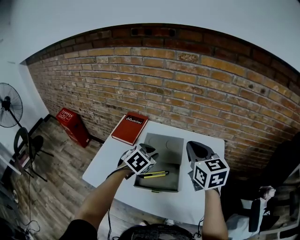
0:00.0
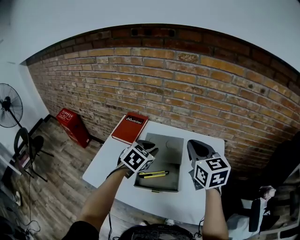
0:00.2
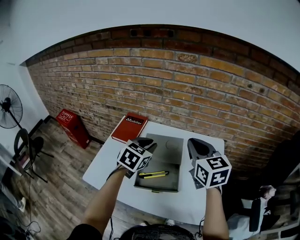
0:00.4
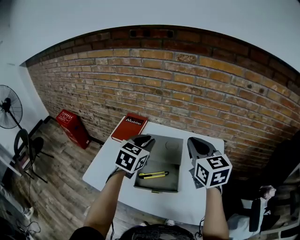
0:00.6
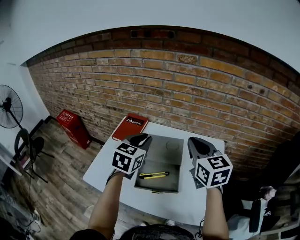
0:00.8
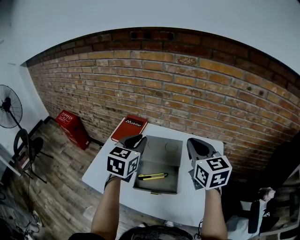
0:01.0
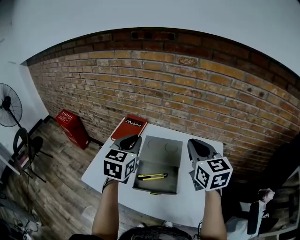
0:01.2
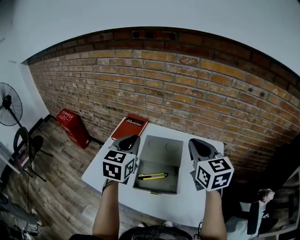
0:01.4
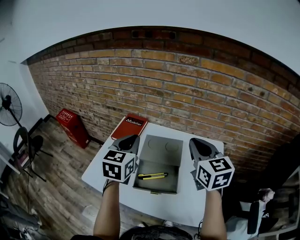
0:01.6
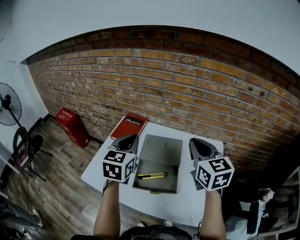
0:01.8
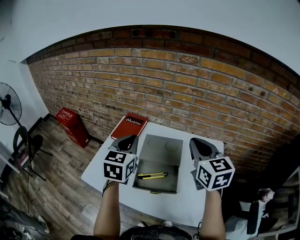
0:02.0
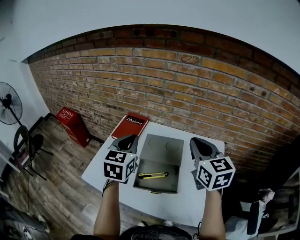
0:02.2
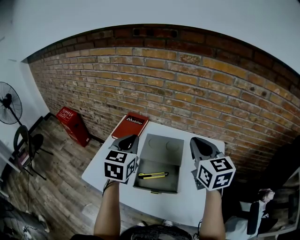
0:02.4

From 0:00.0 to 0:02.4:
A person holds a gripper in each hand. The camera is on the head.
From 0:00.0 to 0:01.2: The left gripper travels upward and to the left by roughly 15 cm, and swivels roughly 40 degrees.
From 0:01.2 to 0:02.4: The grippers stay close to where they were, moving slightly.

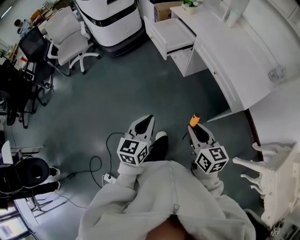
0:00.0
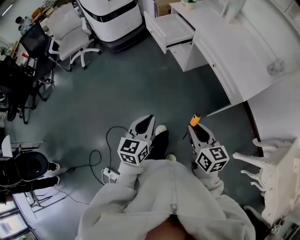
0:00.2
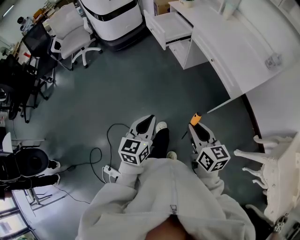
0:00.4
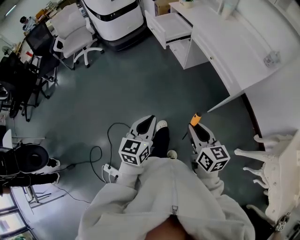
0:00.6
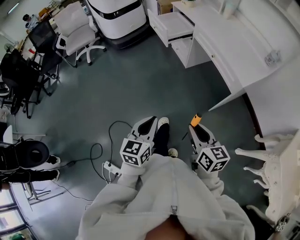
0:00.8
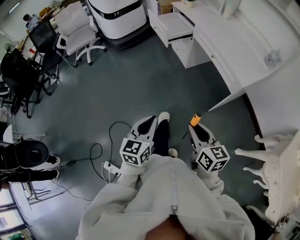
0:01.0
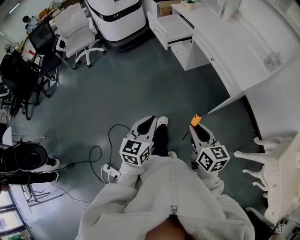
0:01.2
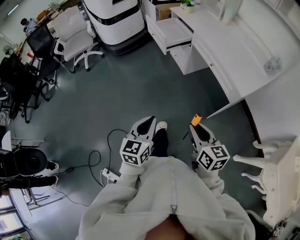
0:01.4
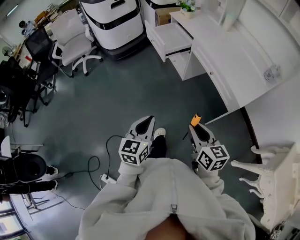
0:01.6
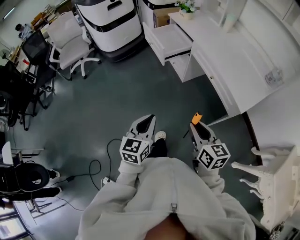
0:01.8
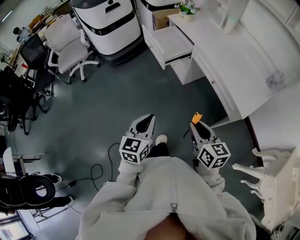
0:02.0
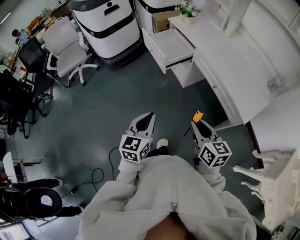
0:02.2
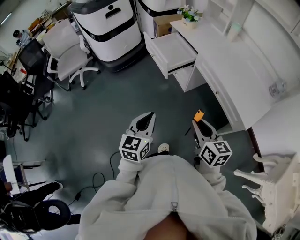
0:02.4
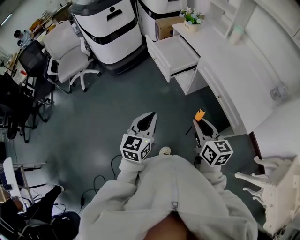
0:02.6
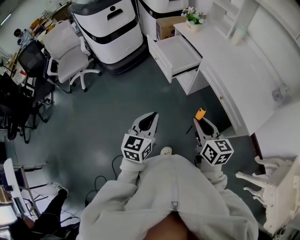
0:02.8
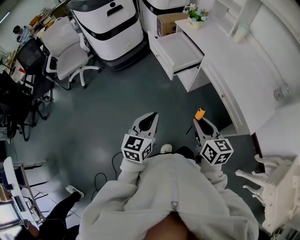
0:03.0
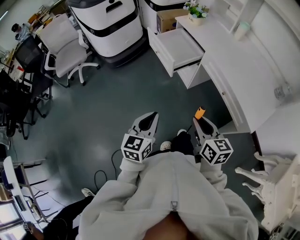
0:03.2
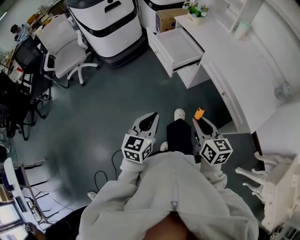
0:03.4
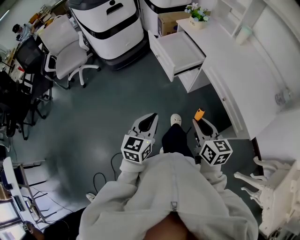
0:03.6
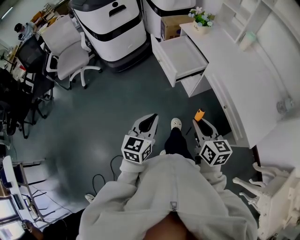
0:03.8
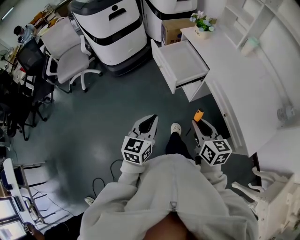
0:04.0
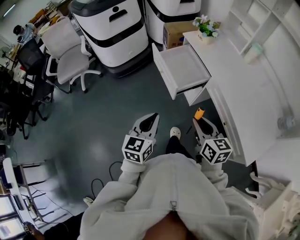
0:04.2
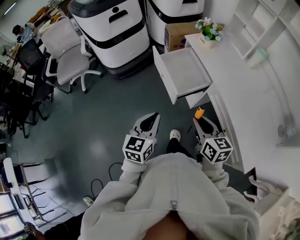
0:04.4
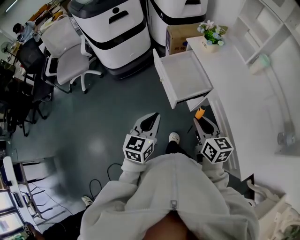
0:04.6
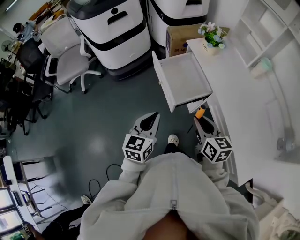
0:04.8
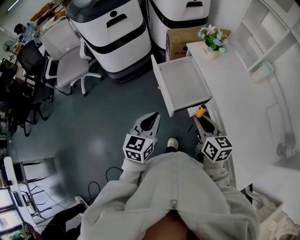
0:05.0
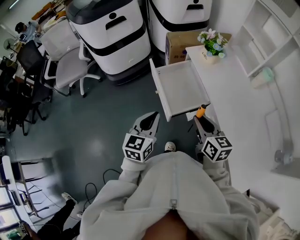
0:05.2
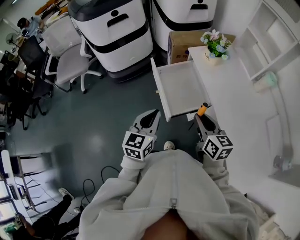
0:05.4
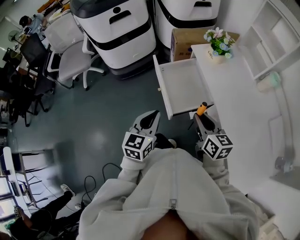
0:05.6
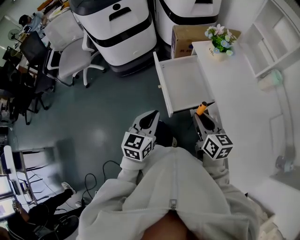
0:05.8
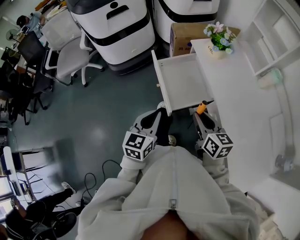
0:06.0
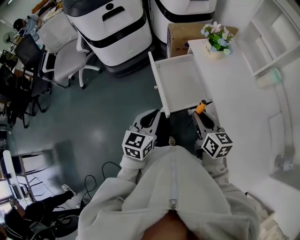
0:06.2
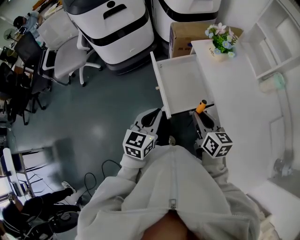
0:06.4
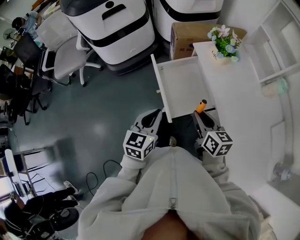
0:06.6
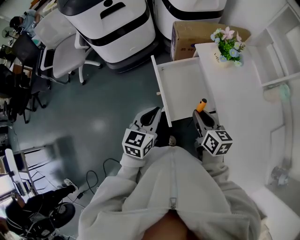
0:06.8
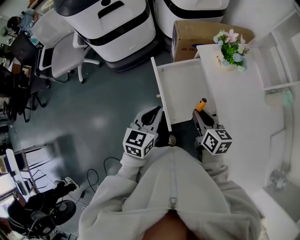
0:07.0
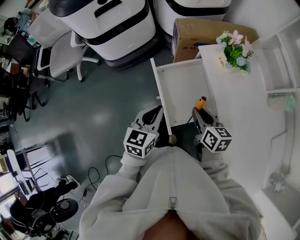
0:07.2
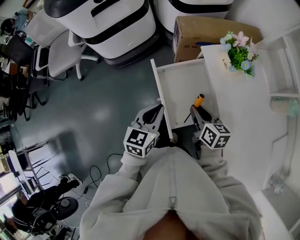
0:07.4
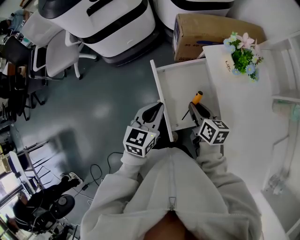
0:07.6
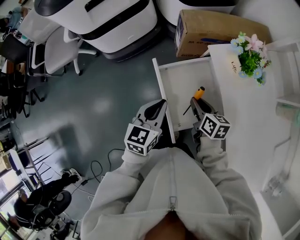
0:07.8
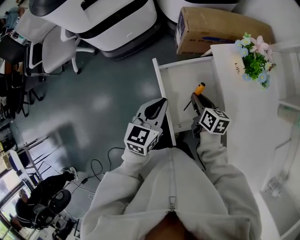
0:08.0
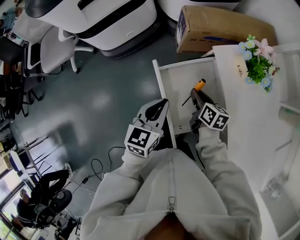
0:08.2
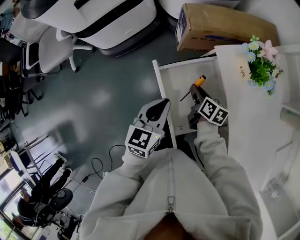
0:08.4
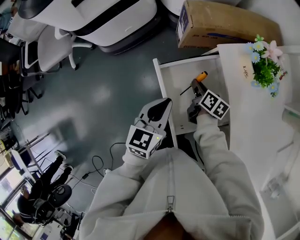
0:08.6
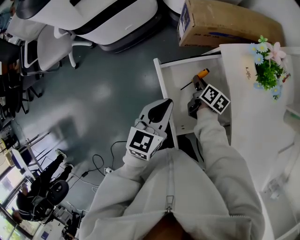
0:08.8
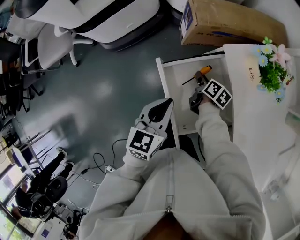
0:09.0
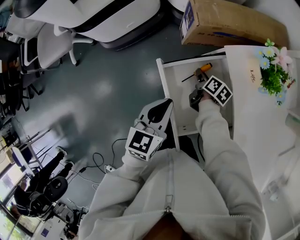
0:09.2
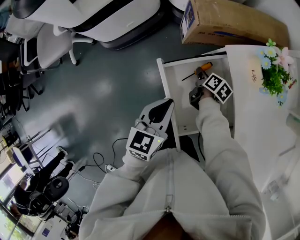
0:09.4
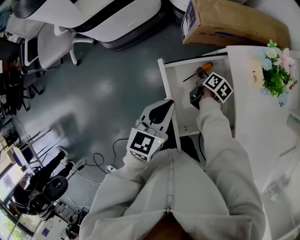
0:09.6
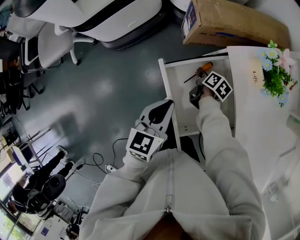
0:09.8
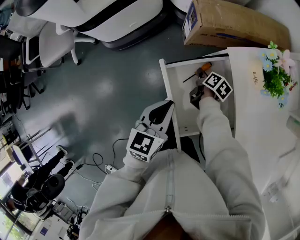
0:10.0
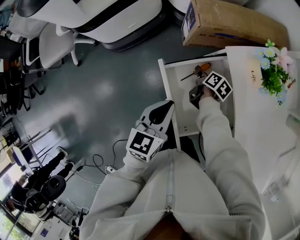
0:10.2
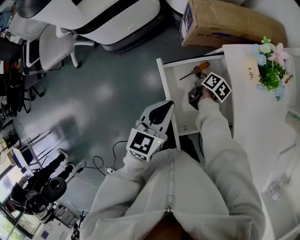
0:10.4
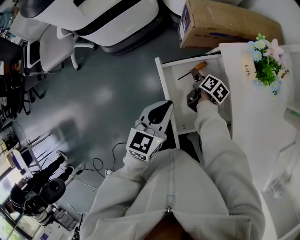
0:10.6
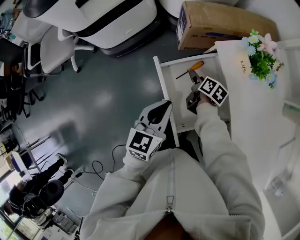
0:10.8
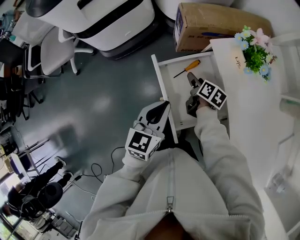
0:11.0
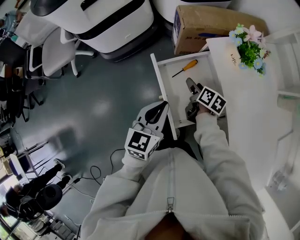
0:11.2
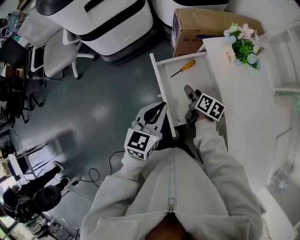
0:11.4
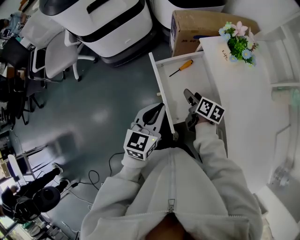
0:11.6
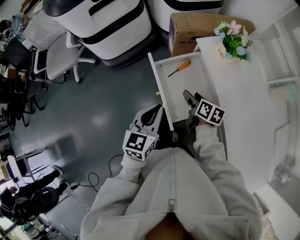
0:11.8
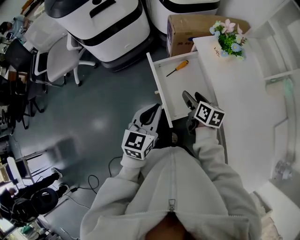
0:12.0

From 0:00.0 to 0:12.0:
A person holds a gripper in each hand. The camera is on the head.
From 0:00.0 to 0:01.6: The right gripper travels backward and back again, about 15 cm each way. The left gripper moves about 15 cm backward and comes back.
From 0:01.6 to 0:03.0: Both grippers move forward, about 20 cm.
From 0:03.0 to 0:04.4: Both grippers travel together forward, some 20 cm.
From 0:04.4 to 0:06.0: The left gripper is displaced forward and to the right by roughly 15 cm. The right gripper shifts approximately 15 cm forward.
From 0:06.0 to 0:07.6: The right gripper shifts some 20 cm forward and downward. The left gripper is displaced forward by some 20 cm.
From 0:07.6 to 0:09.0: The right gripper goes approximately 20 cm downward and forward, and swivels approximately 30 degrees. The left gripper shifts roughly 5 cm forward.
From 0:09.0 to 0:10.4: The right gripper opens up.
From 0:10.4 to 0:12.0: The right gripper goes roughly 25 cm upward and backward, and swivels about 30 degrees; the left gripper is displaced backward and upward by roughly 15 cm.

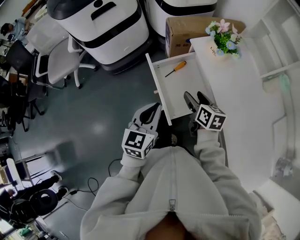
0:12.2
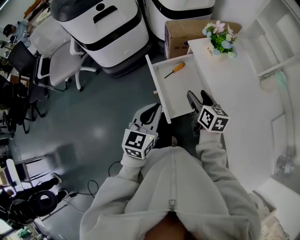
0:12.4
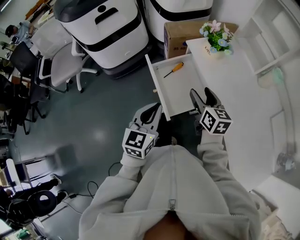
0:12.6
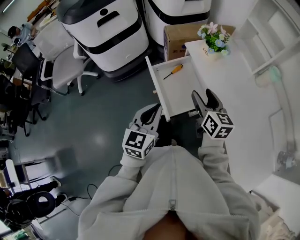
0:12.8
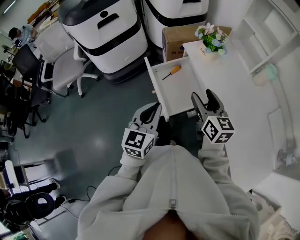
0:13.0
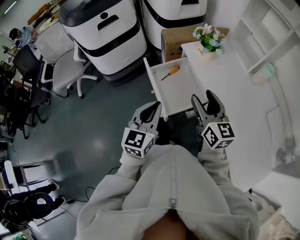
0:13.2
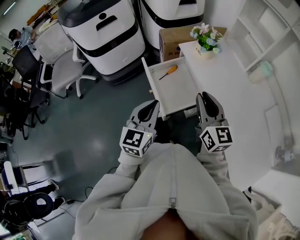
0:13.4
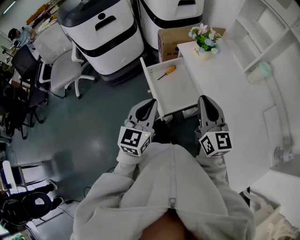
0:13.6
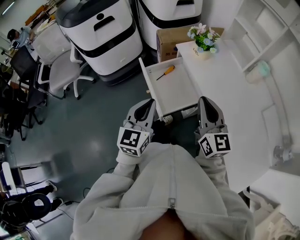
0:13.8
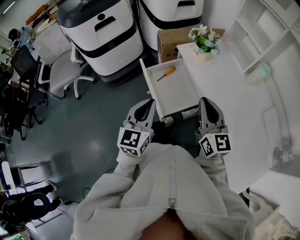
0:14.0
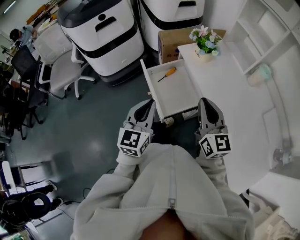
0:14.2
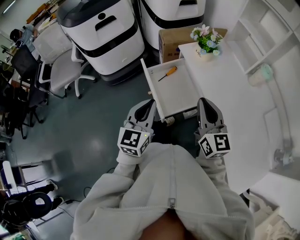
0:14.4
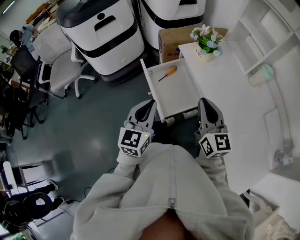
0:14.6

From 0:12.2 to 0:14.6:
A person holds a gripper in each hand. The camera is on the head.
From 0:12.2 to 0:13.4: The left gripper moves upward and backward, approximately 10 cm; the right gripper travels upward and backward by roughly 20 cm, rotates about 40 degrees, and closes.
From 0:13.4 to 0:14.6: There are only small adjustments of the grippers.

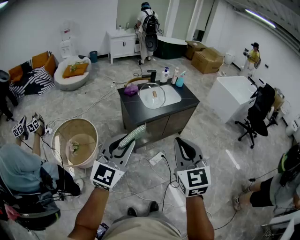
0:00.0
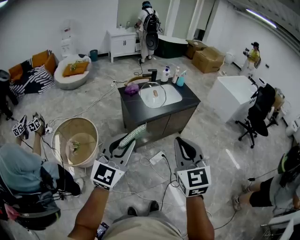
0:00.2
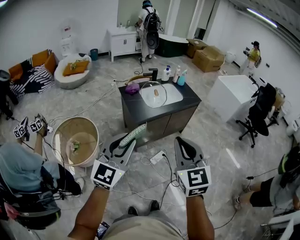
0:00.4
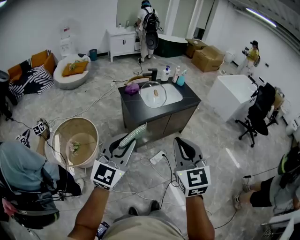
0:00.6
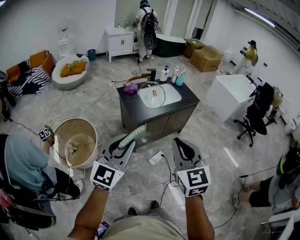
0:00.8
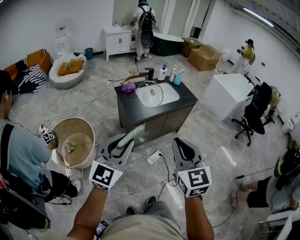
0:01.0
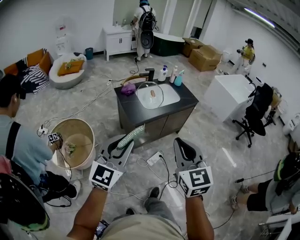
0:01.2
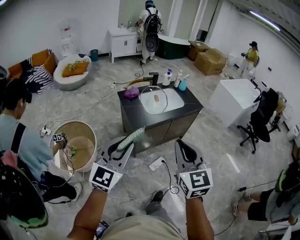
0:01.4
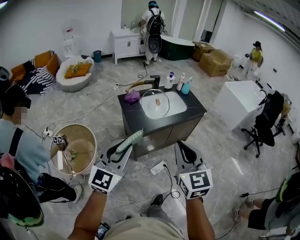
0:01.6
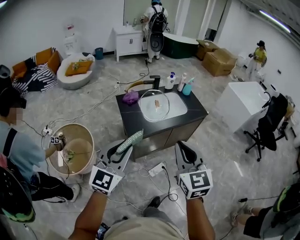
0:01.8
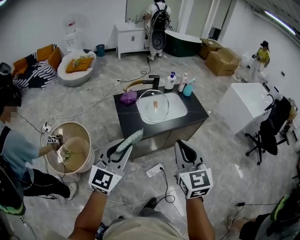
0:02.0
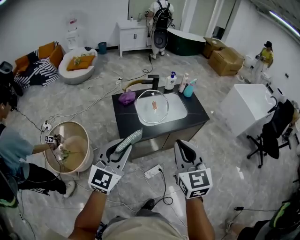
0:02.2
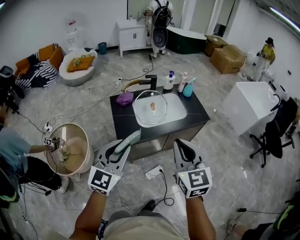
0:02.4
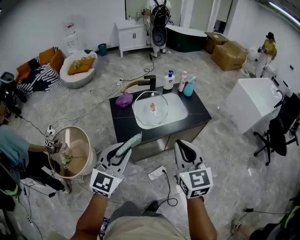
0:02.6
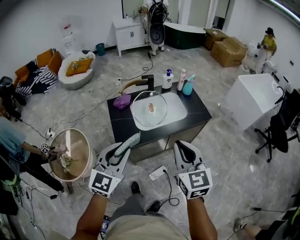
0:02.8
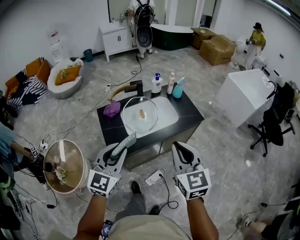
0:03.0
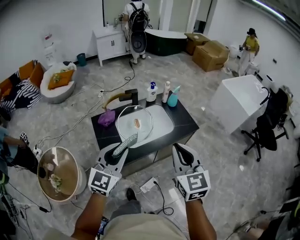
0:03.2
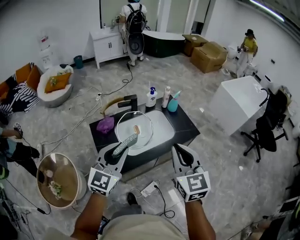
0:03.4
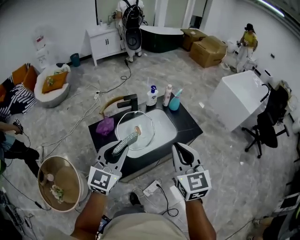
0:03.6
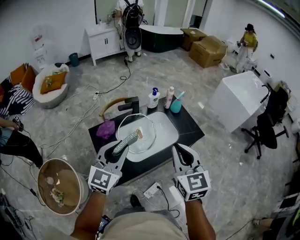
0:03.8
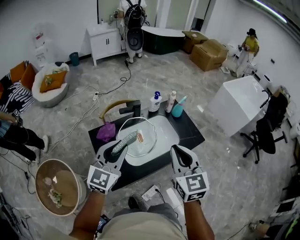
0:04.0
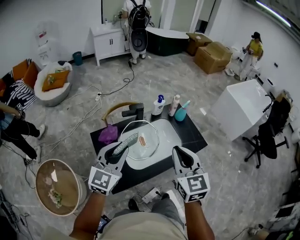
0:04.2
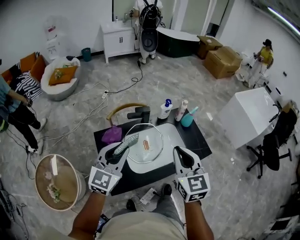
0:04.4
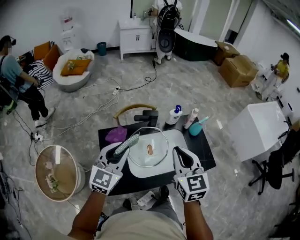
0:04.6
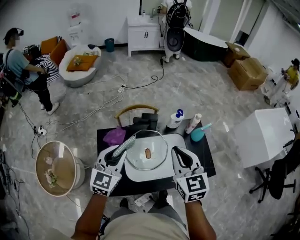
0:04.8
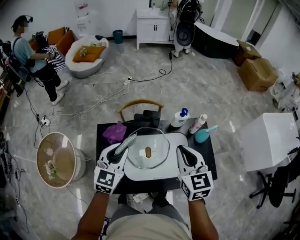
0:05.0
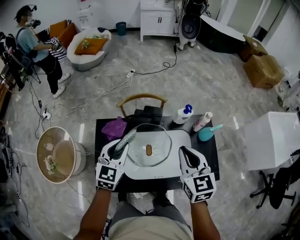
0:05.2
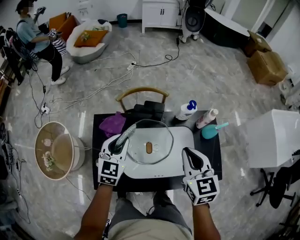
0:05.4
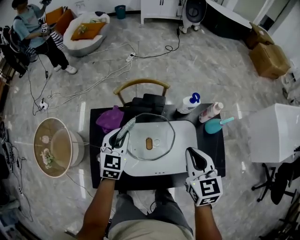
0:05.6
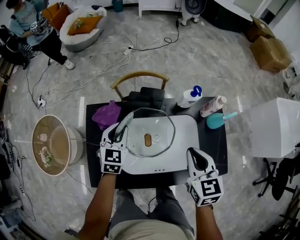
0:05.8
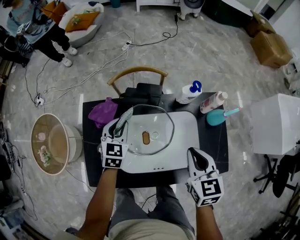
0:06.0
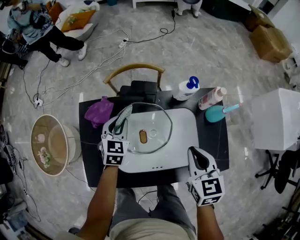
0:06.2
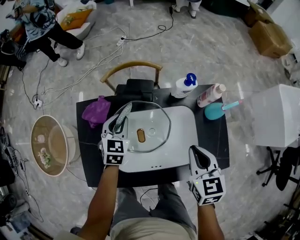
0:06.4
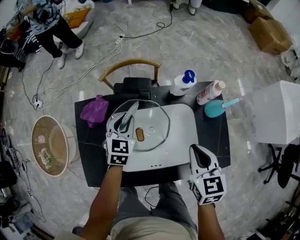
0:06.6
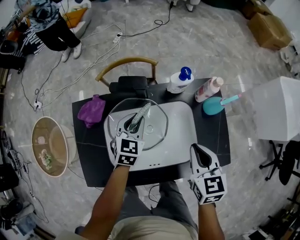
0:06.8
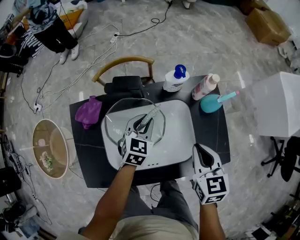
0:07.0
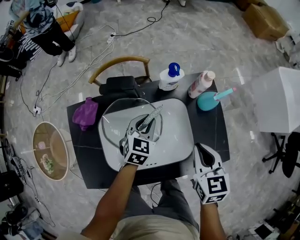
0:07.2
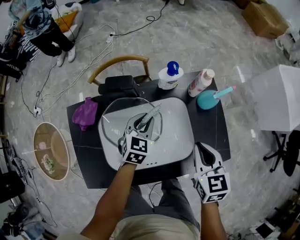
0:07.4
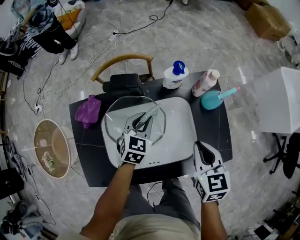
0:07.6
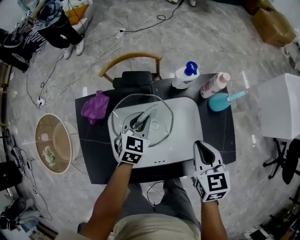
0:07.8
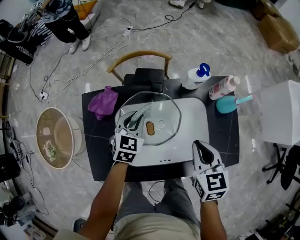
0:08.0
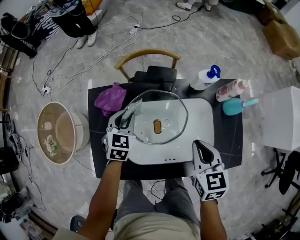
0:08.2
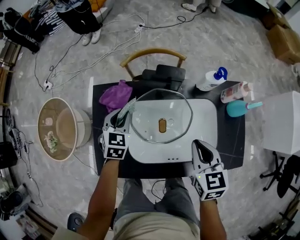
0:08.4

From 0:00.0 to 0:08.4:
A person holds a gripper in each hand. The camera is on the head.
From 0:00.0 to 0:01.4: Both grippers travel together forward, roughly 10 cm.
From 0:01.4 to 0:02.8: Both grippers move forward and to the right, some 30 cm.
From 0:02.8 to 0:04.2: Both grippers move forward, roughly 25 cm.
From 0:04.2 to 0:05.6: The right gripper changes place by approximately 30 cm, and turns by approximately 30 degrees. Meanwhile the left gripper moves downward, about 25 cm, and swivels some 40 degrees.
From 0:05.6 to 0:07.0: The left gripper goes approximately 20 cm to the right and downward; the right gripper heads to the right and downward, covering some 15 cm.
From 0:07.0 to 0:08.4: The right gripper moves to the left, some 10 cm, while the left gripper heads to the left, covering some 25 cm.
